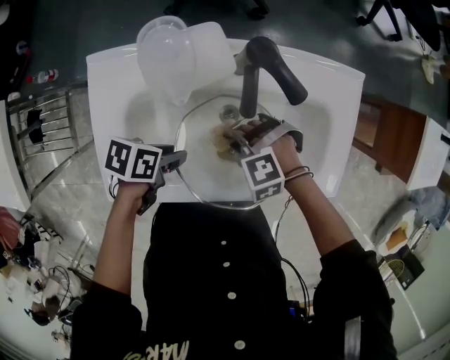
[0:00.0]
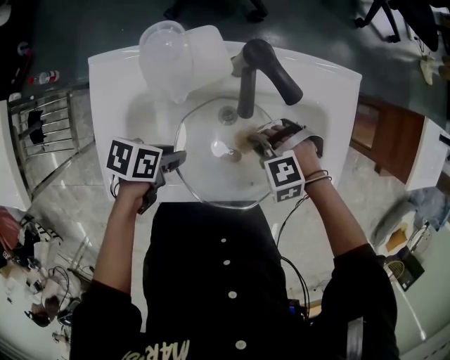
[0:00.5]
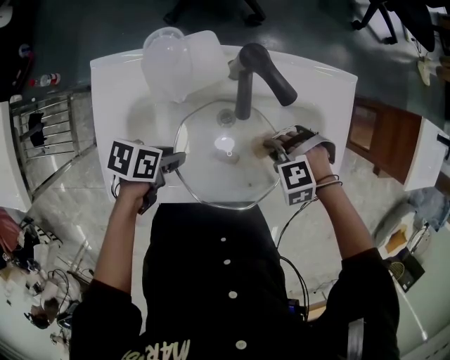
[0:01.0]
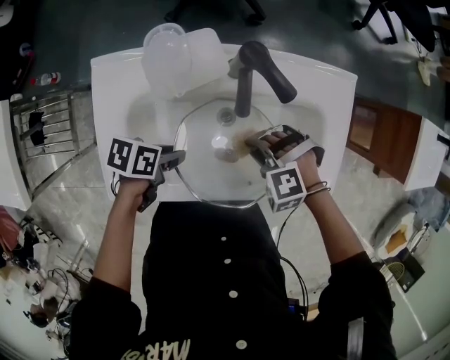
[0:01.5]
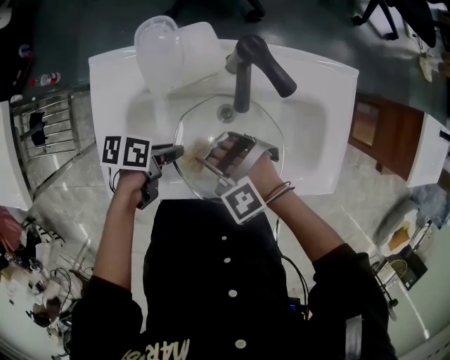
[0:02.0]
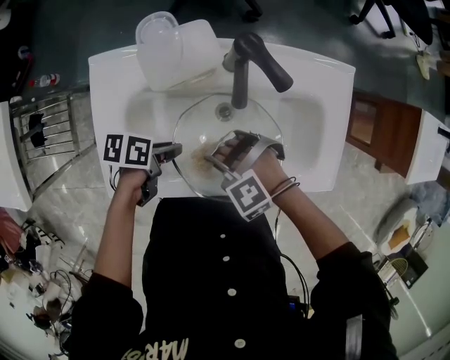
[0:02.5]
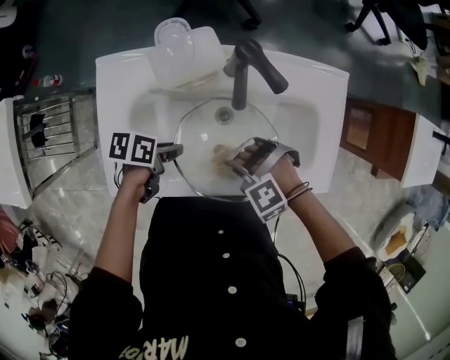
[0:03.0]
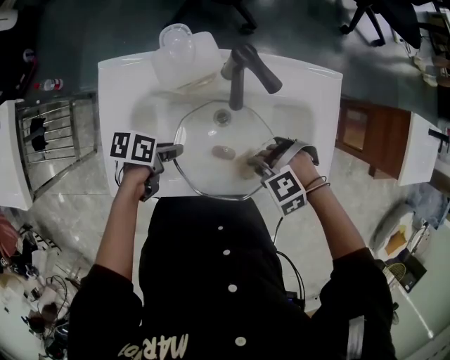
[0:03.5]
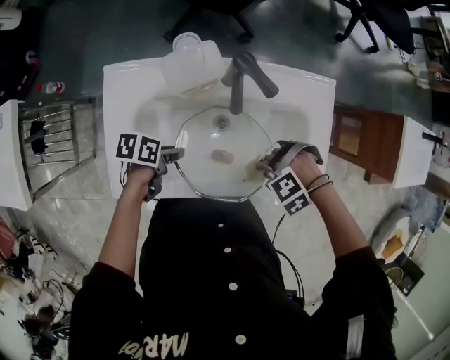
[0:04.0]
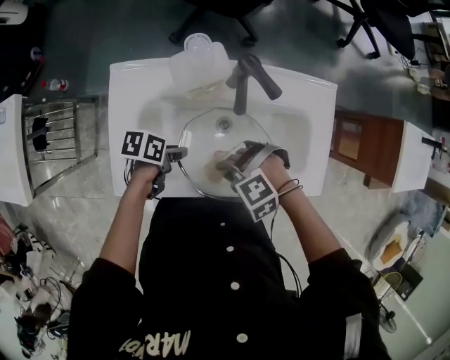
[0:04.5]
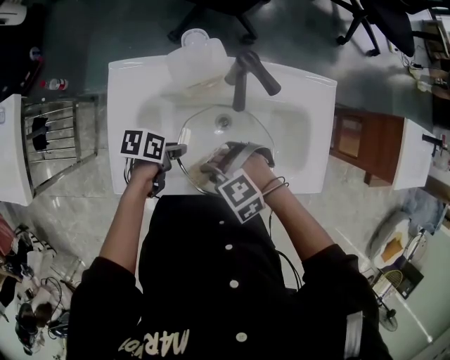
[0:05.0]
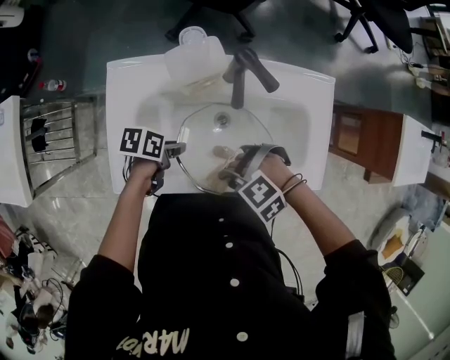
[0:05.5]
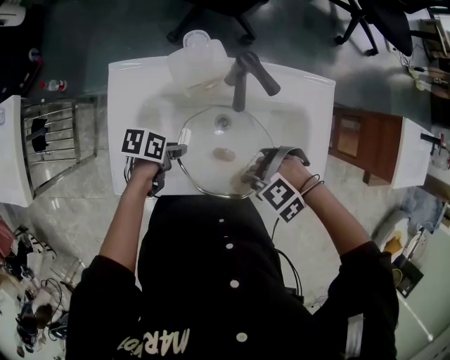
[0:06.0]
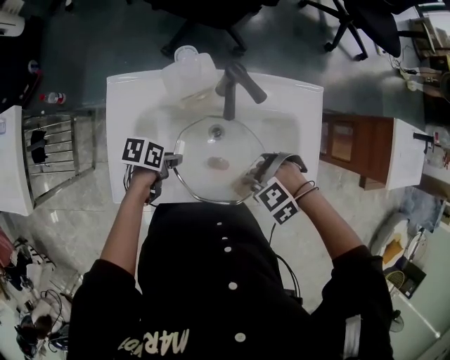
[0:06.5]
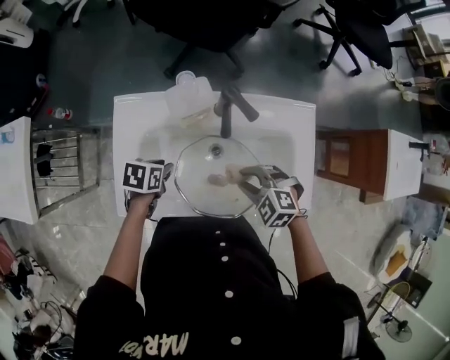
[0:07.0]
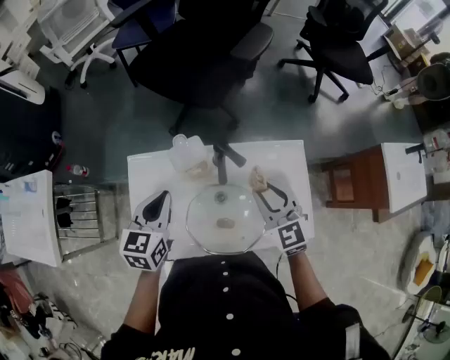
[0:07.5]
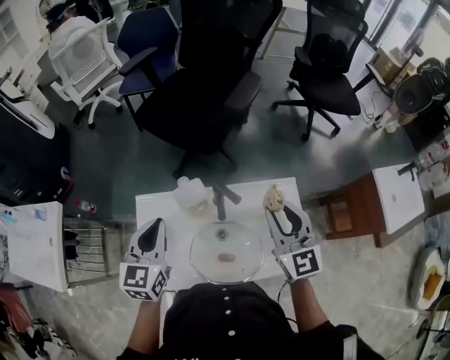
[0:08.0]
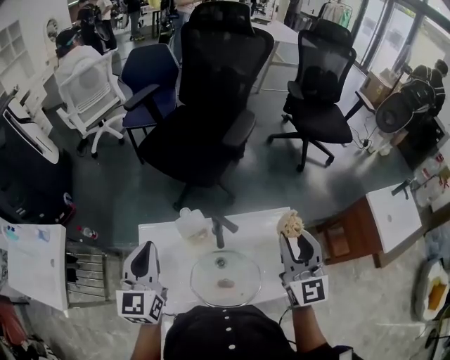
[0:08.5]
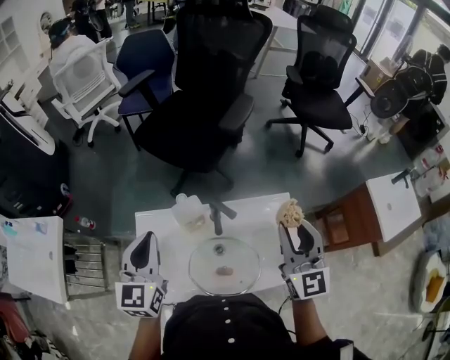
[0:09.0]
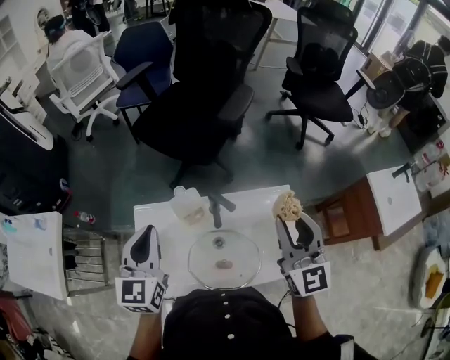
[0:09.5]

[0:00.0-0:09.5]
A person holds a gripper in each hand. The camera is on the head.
0:00.0 to 0:02.0: The right gripper moves about 10 cm.
0:02.0 to 0:04.0: The right gripper changes place by roughly 20 cm, and turns by some 40 degrees.
0:04.0 to 0:05.5: The right gripper changes place by roughly 10 cm.
0:05.5 to 0:07.5: The right gripper changes place by approximately 25 cm, and tips its fingers upward by roughly 40 degrees. Meanwhile the left gripper is displaced upward by about 25 cm, changes its angle by about 60 degrees, and closes up.
0:07.5 to 0:09.5: Both grippers travel together upward, about 15 cm. The right gripper rotates about 30 degrees, while the left gripper changes its angle by about 20 degrees.

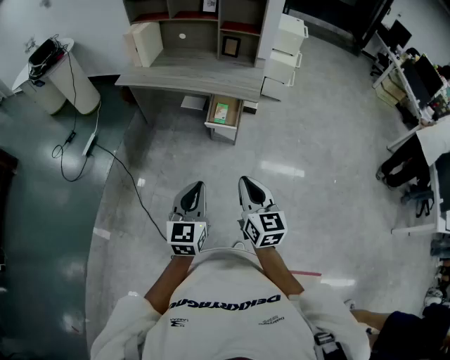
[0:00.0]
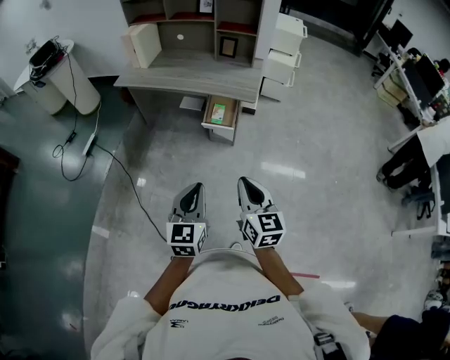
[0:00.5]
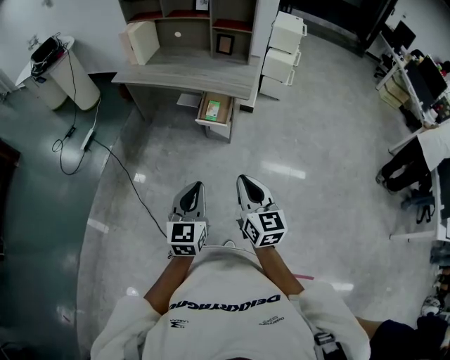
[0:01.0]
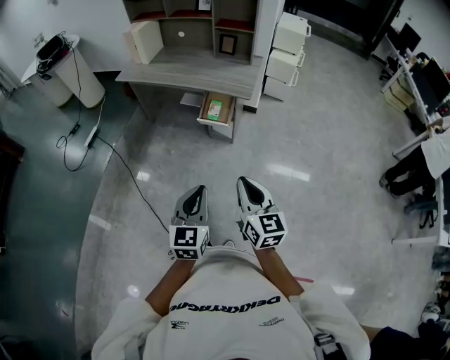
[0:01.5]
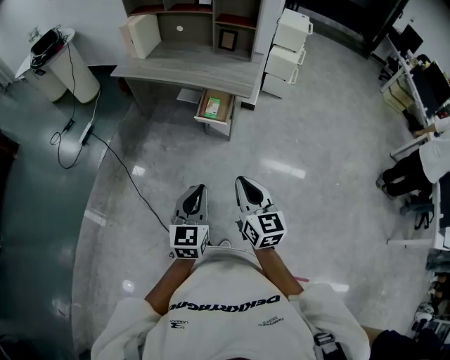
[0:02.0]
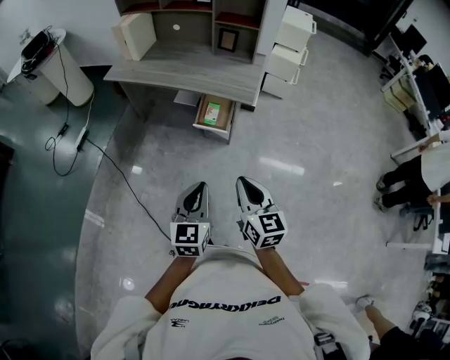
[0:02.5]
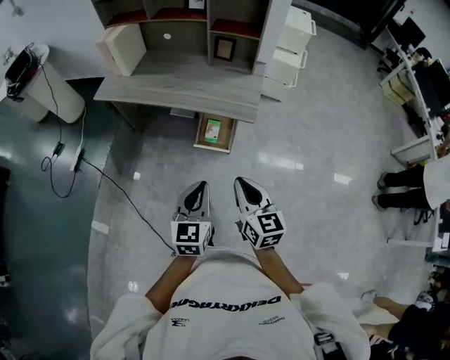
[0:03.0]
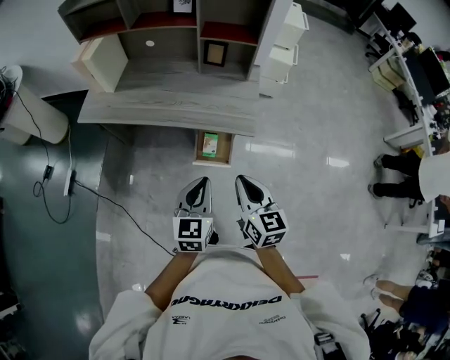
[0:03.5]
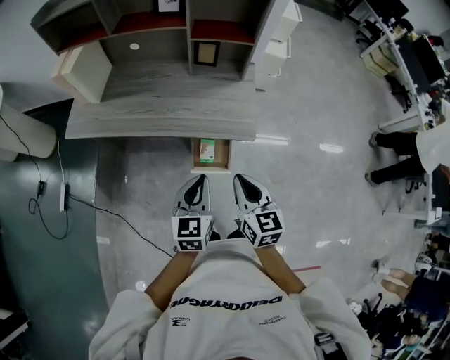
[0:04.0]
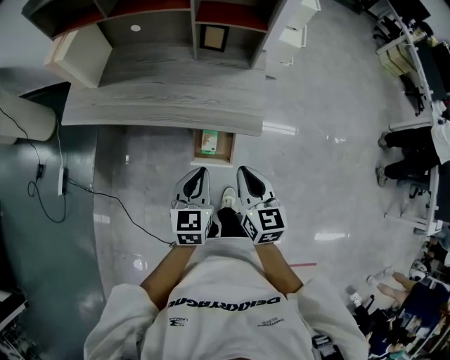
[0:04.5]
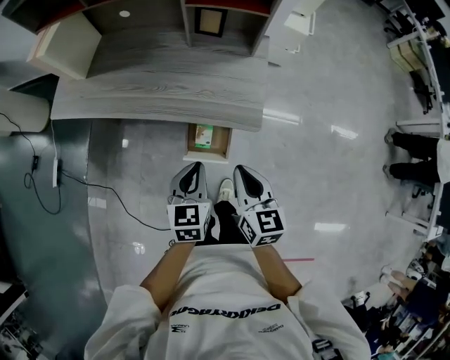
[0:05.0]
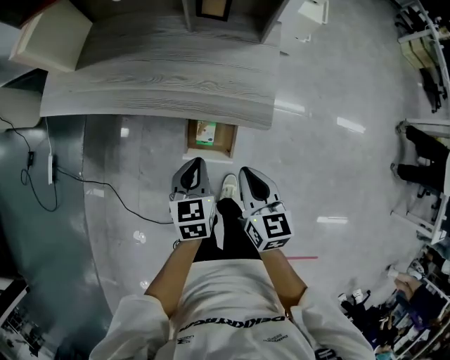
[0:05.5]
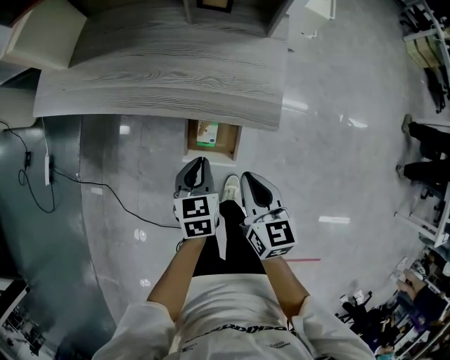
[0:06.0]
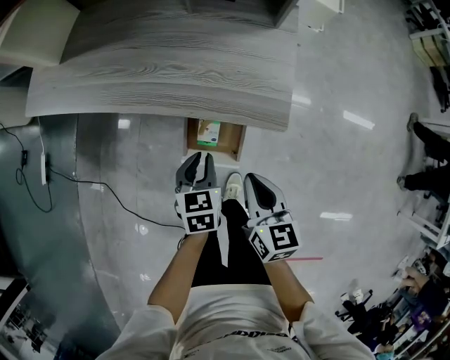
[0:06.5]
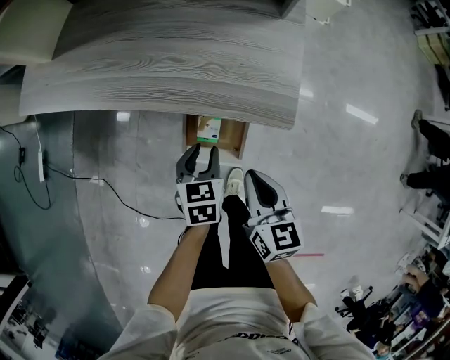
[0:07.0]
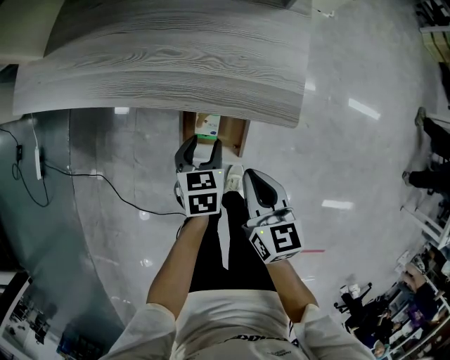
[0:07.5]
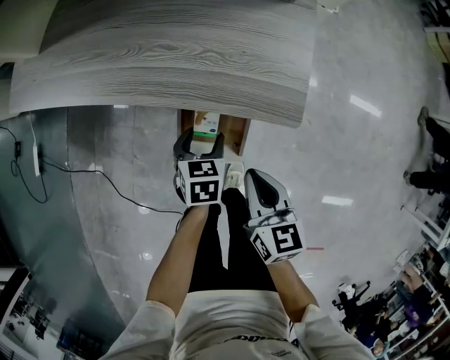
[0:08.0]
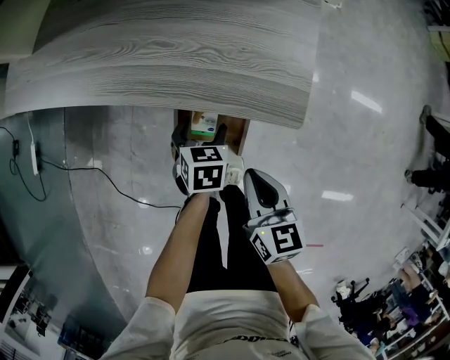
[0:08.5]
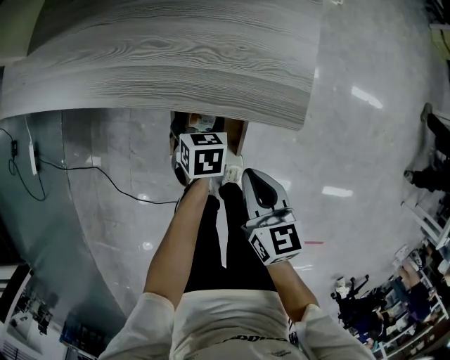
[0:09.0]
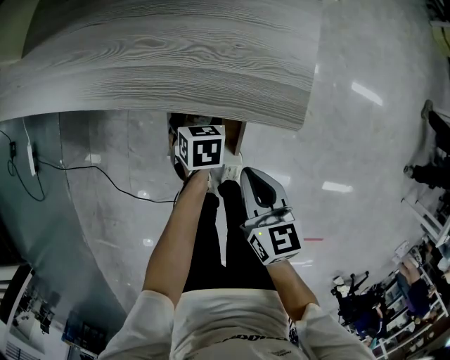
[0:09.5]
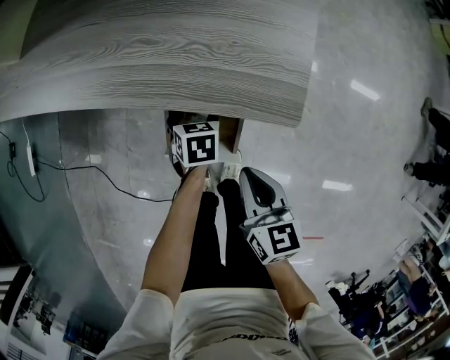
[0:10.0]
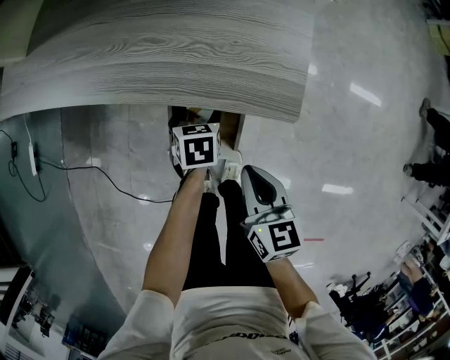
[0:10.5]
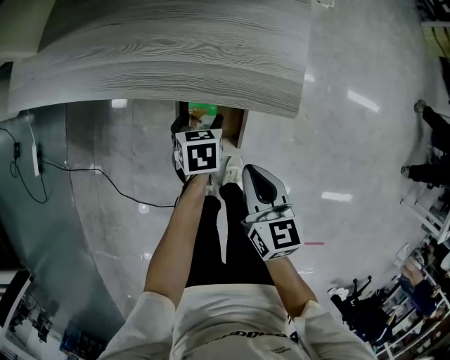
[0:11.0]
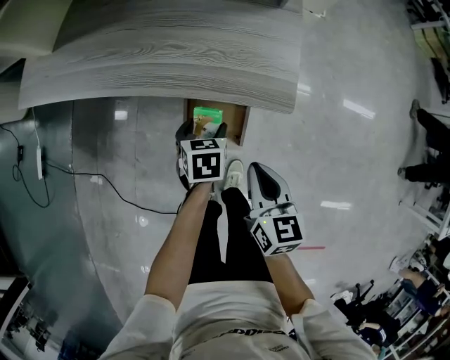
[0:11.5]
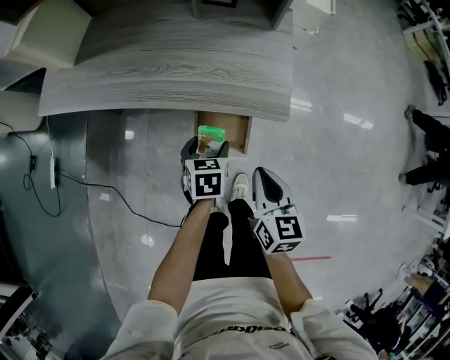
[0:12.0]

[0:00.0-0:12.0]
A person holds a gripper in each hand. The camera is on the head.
0:00.0 to 0:02.0: Both grippers travel together to the right, about 10 cm.
0:02.0 to 0:04.0: The pair of grippers is taken forward, about 50 cm.
0:04.0 to 0:06.0: Both grippers move downward and forward, some 25 cm. The left gripper swivels some 20 degrees.
0:06.0 to 0:08.0: The left gripper heads downward, covering roughly 15 cm, and opens. The right gripper is displaced downward by roughly 10 cm.
0:08.0 to 0:10.0: The left gripper moves downward and forward, roughly 10 cm.
0:10.0 to 0:12.0: The right gripper shifts about 15 cm upward. Meanwhile the left gripper goes roughly 20 cm upward and backward.

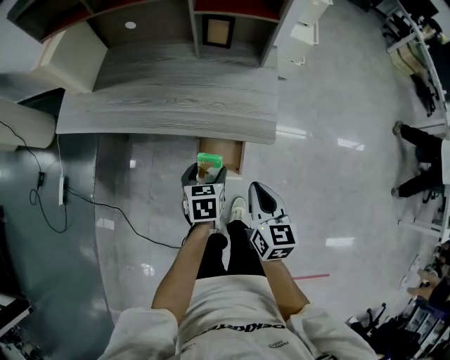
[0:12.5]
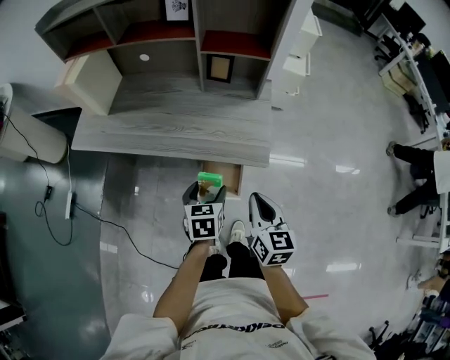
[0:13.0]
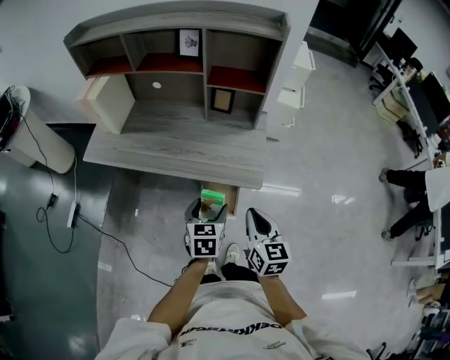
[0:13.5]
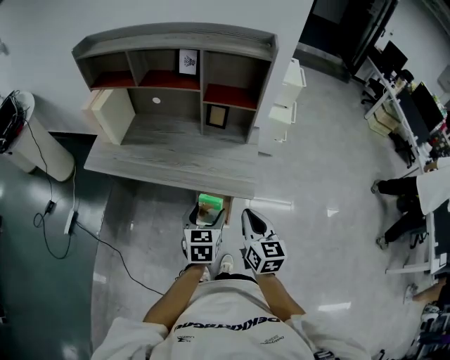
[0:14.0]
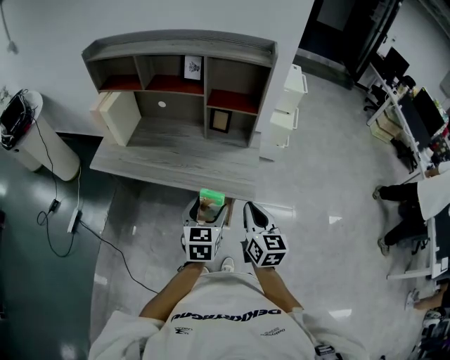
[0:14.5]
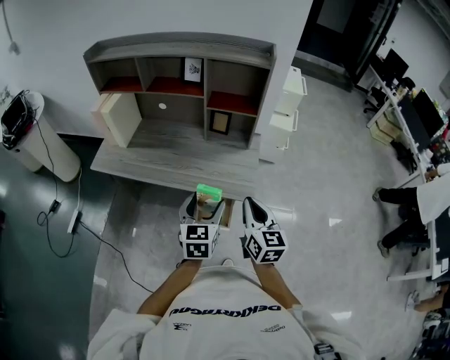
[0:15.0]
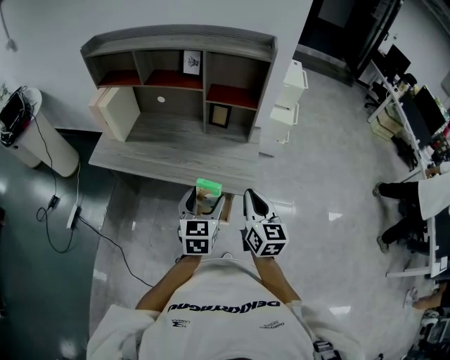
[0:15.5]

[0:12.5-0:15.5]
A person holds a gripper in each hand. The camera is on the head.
0:12.5 to 0:14.0: Both grippers move upward, roughly 20 cm. The left gripper turns by roughly 20 degrees.
0:14.0 to 0:15.5: The left gripper shifts about 5 cm upward; the right gripper changes place by approximately 5 cm.

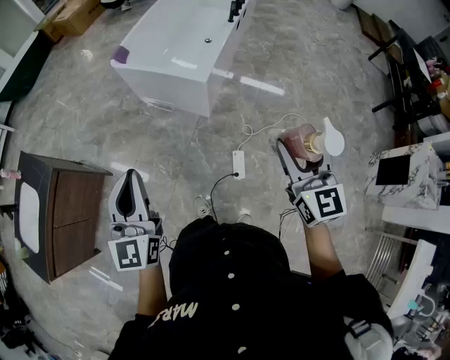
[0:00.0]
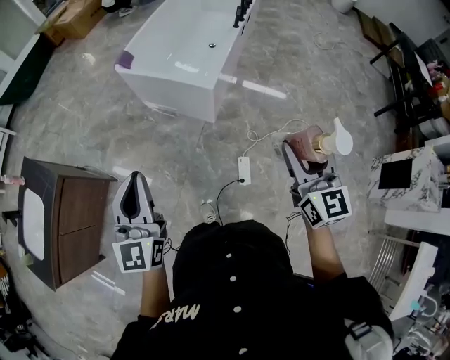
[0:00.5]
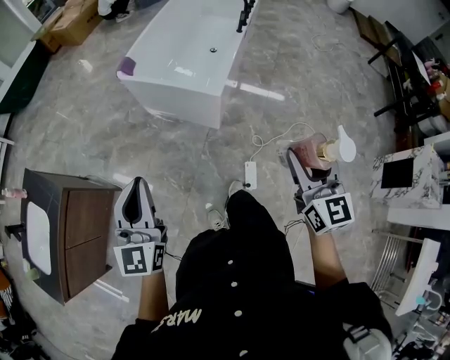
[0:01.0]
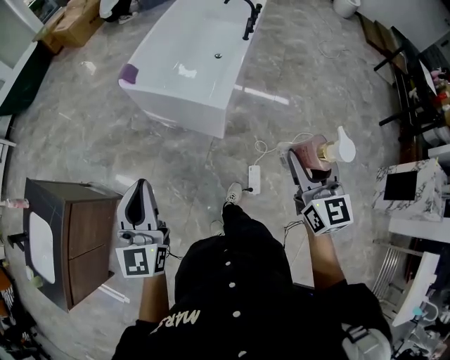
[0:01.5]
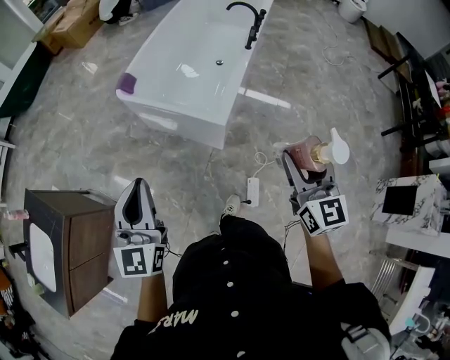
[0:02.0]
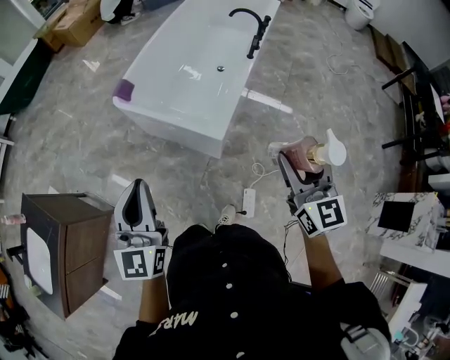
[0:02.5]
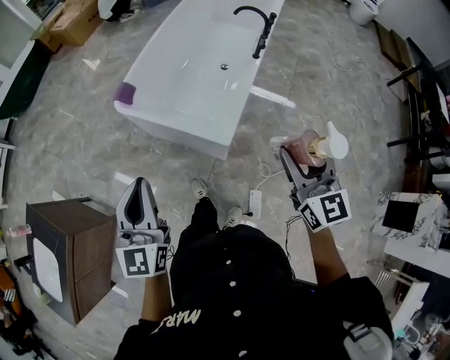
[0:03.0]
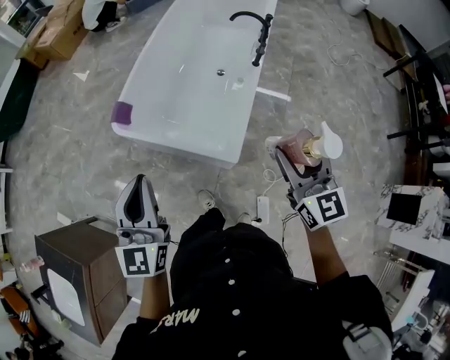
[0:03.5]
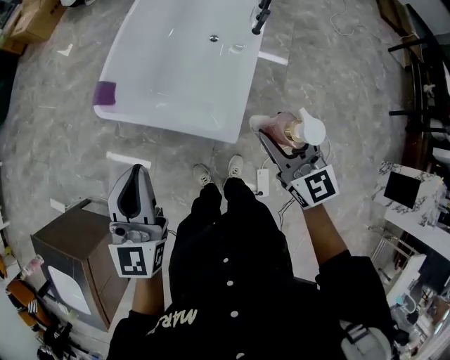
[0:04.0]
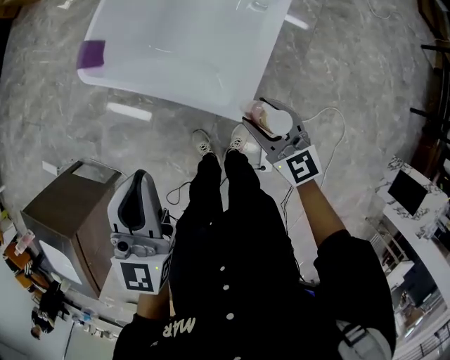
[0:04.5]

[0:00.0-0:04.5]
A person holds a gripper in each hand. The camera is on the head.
0:00.0 to 0:02.0: The grippers both shift forward by approximately 25 cm.
0:02.0 to 0:04.5: The left gripper heads forward, covering approximately 30 cm. The right gripper heads forward and downward, covering approximately 40 cm, and rotates approximately 30 degrees.
